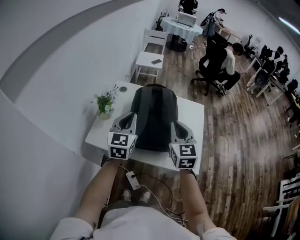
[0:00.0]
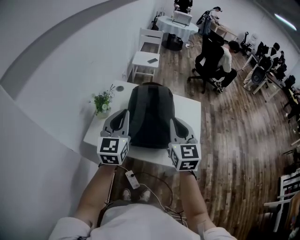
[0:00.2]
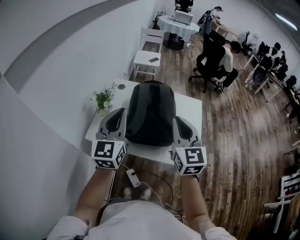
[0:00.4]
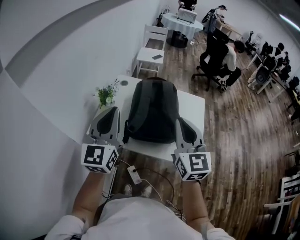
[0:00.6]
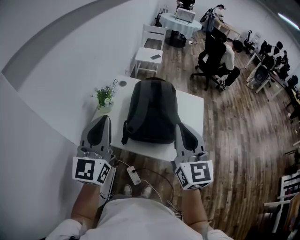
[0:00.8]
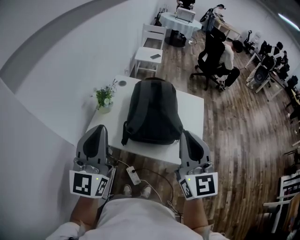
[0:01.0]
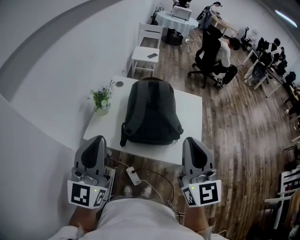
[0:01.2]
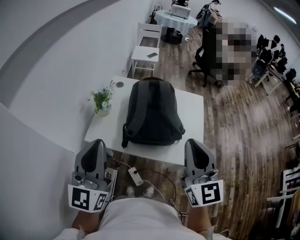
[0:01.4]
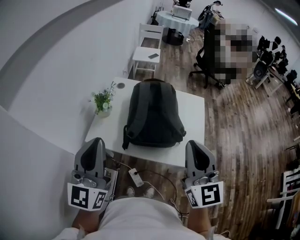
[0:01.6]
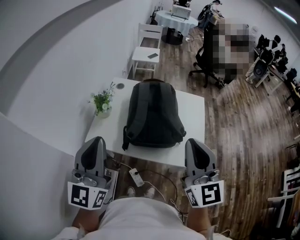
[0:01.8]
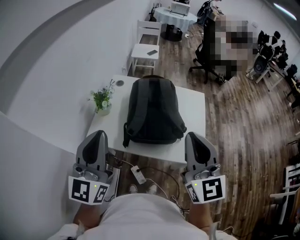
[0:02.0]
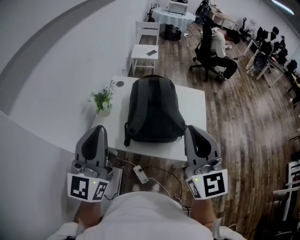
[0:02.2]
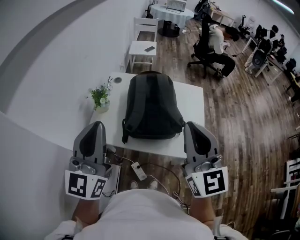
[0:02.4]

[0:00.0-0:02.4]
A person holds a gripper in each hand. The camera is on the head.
0:00.0 to 0:01.2: Both grippers move backward and upward, roughly 20 cm. The left gripper rotates about 20 degrees.
0:01.2 to 0:02.4: The grippers make only small movements.

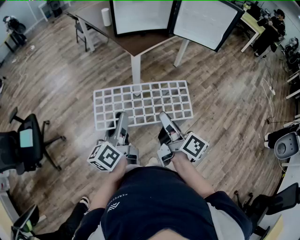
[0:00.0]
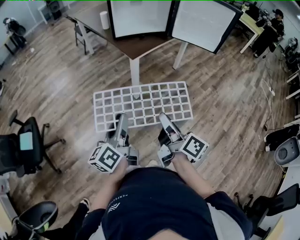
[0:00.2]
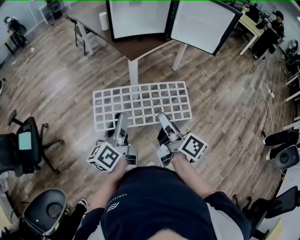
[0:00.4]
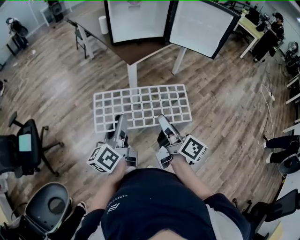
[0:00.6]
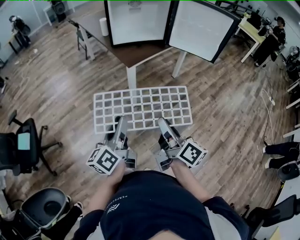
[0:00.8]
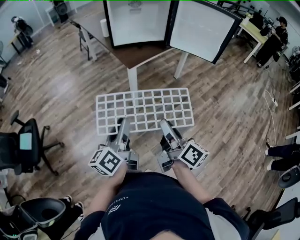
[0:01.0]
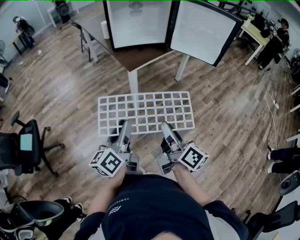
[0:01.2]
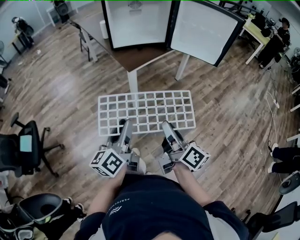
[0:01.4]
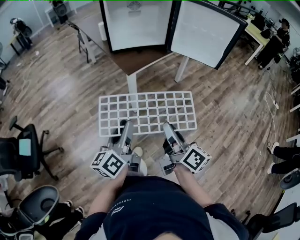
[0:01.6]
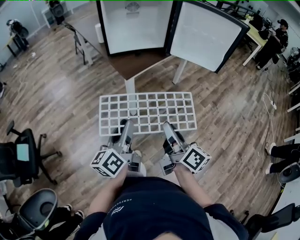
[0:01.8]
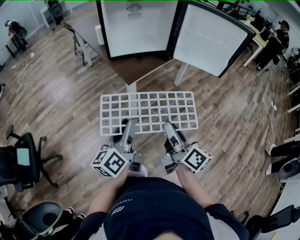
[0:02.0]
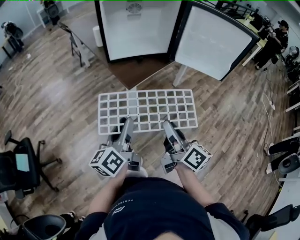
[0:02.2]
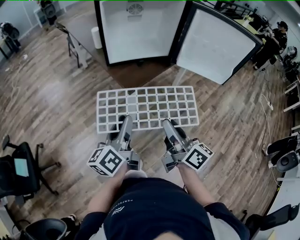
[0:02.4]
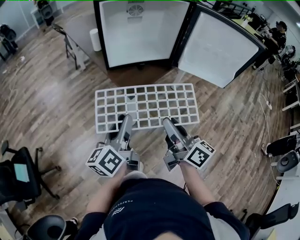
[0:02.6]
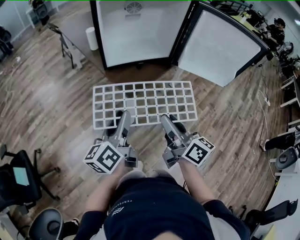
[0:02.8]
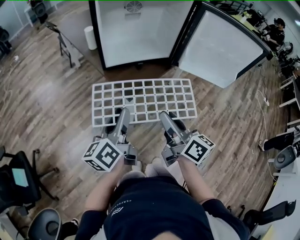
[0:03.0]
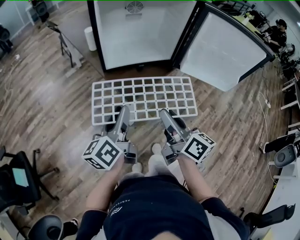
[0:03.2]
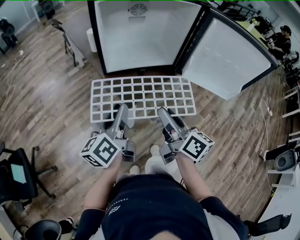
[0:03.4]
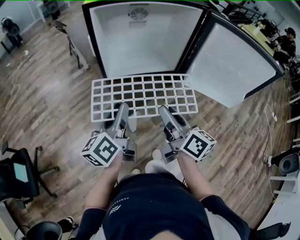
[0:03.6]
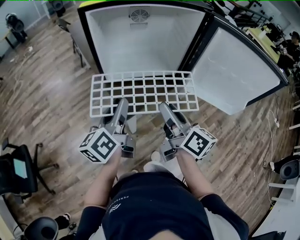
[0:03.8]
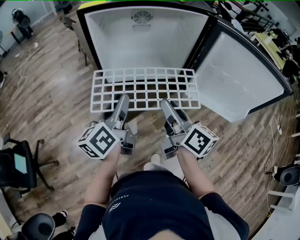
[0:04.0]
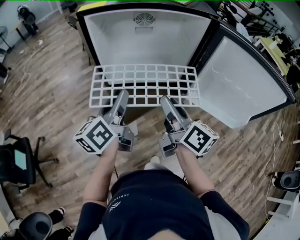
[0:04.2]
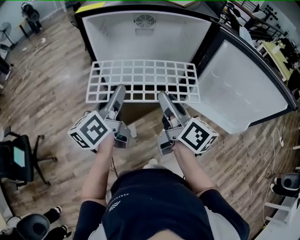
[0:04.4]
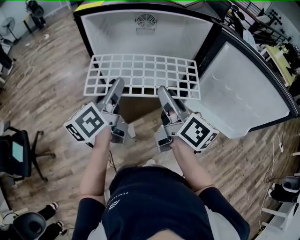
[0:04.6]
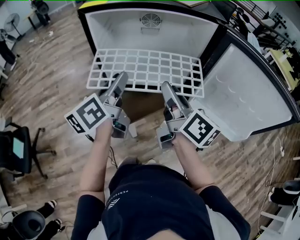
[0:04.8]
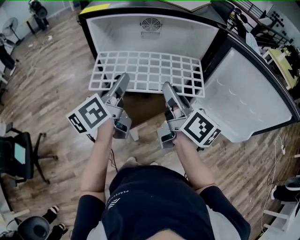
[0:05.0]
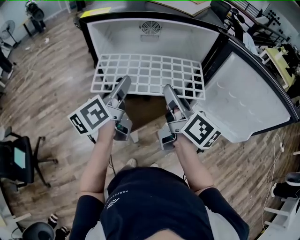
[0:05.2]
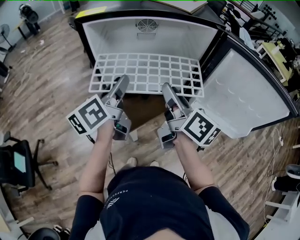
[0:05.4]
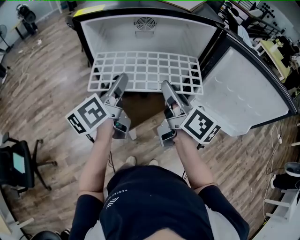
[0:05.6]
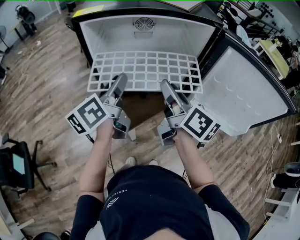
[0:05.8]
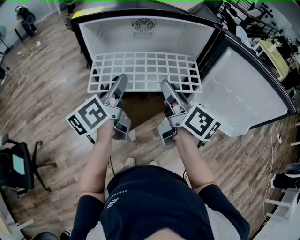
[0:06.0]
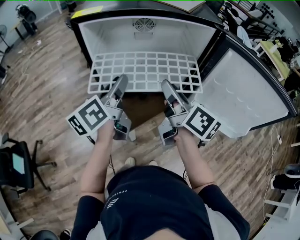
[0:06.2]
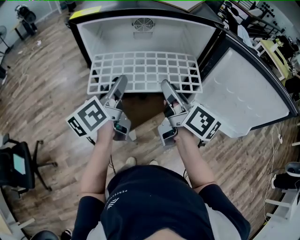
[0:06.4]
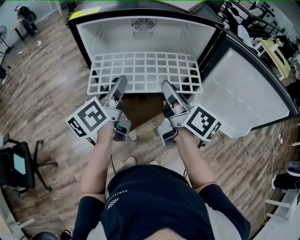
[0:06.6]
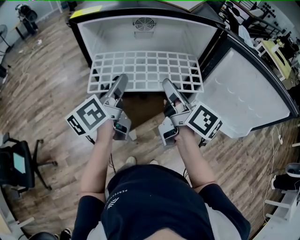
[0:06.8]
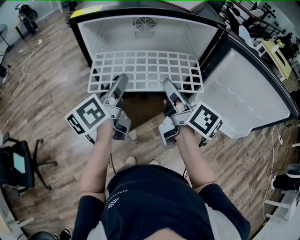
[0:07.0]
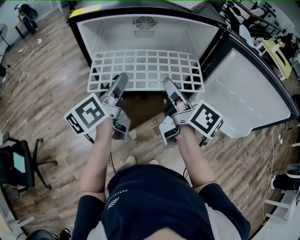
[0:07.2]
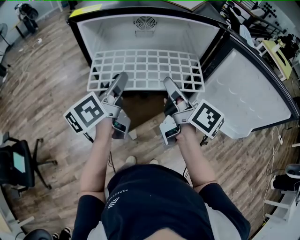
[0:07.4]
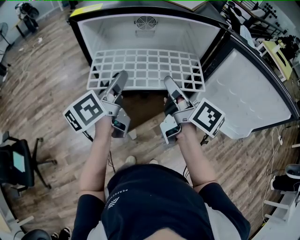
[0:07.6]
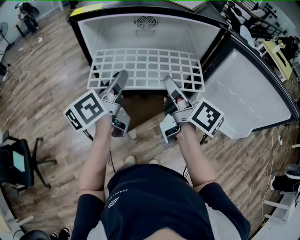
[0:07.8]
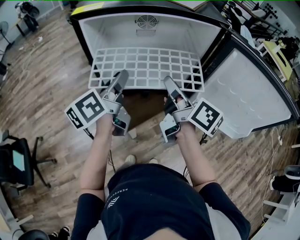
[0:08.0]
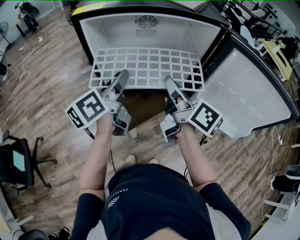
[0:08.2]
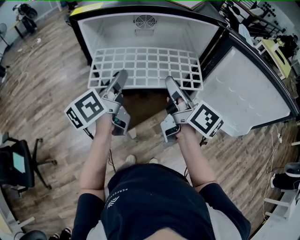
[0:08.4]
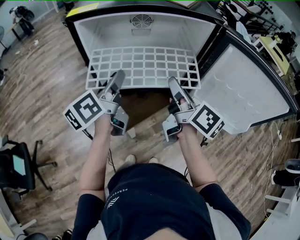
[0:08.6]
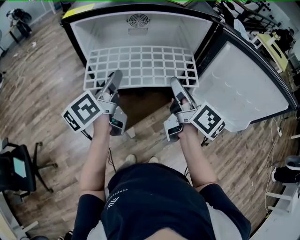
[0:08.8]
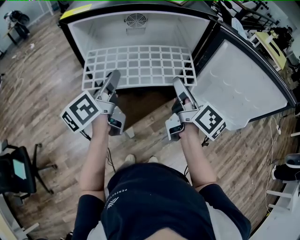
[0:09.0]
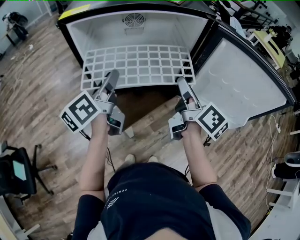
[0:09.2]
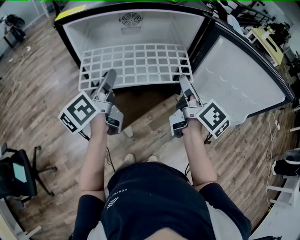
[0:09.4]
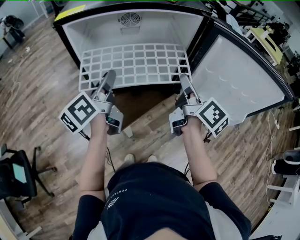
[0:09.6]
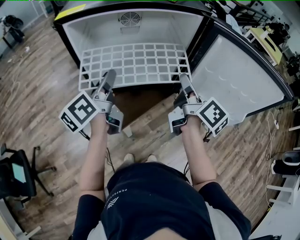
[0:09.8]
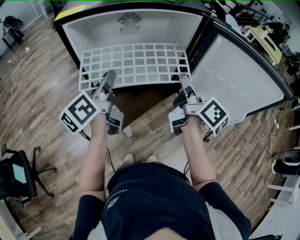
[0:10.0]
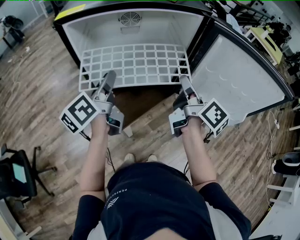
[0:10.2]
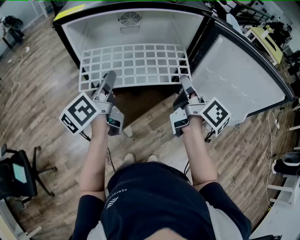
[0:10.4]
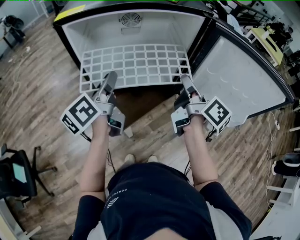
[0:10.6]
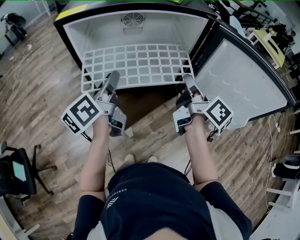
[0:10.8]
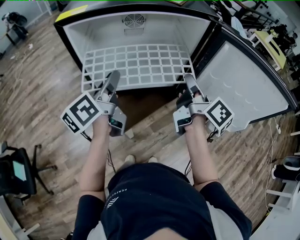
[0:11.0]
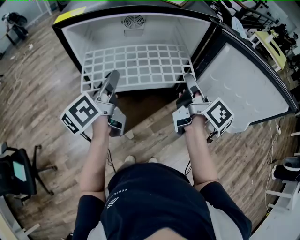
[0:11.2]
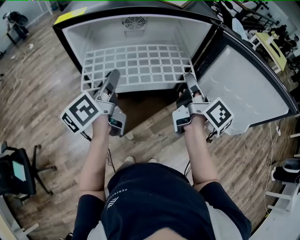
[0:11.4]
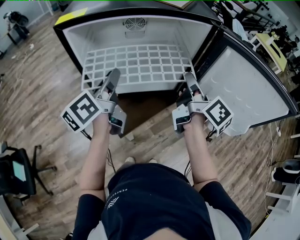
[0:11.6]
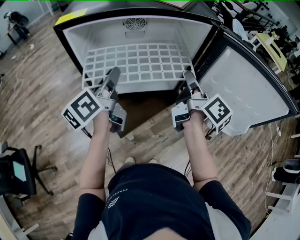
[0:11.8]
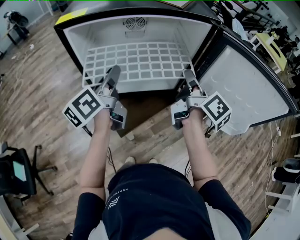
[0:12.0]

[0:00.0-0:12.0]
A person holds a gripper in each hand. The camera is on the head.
0:00.0 to 0:01.6: Both grippers travel together to the right and forward, about 10 cm.
0:01.6 to 0:03.0: Both grippers move forward, some 25 cm.
0:03.0 to 0:04.4: The grippers both shift forward by about 20 cm.
0:04.4 to 0:06.0: The grippers both shift forward by approximately 5 cm.
0:06.0 to 0:07.6: The grippers make only small movements.
0:07.6 to 0:09.0: The right gripper is displaced to the right by some 5 cm, and opens up.
0:09.0 to 0:10.4: The right gripper closes its fingers.
0:10.4 to 0:12.0: The right gripper ends up roughly 5 cm from where it was.

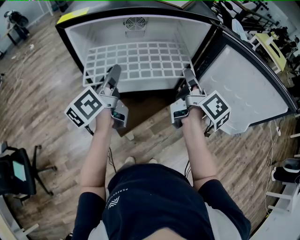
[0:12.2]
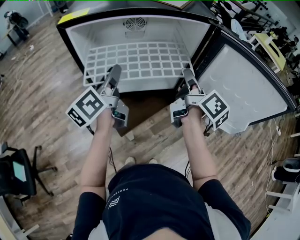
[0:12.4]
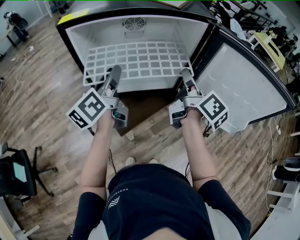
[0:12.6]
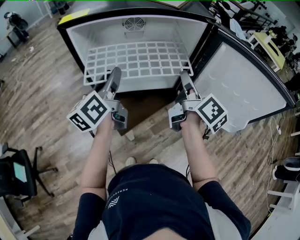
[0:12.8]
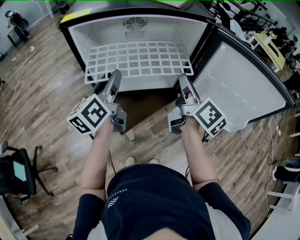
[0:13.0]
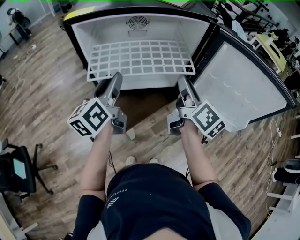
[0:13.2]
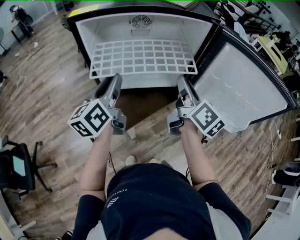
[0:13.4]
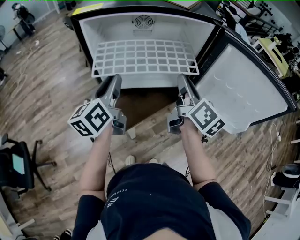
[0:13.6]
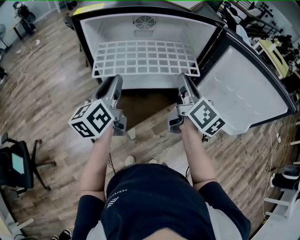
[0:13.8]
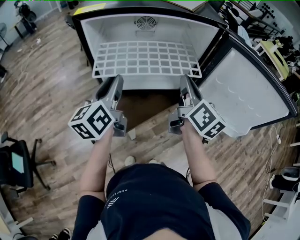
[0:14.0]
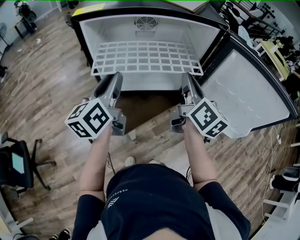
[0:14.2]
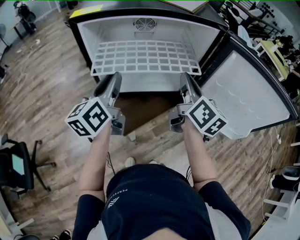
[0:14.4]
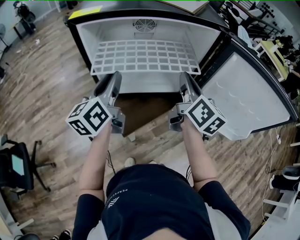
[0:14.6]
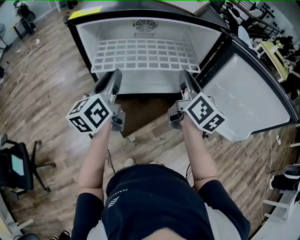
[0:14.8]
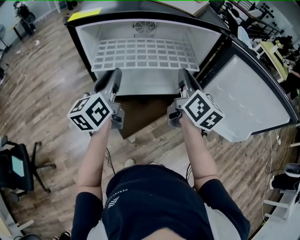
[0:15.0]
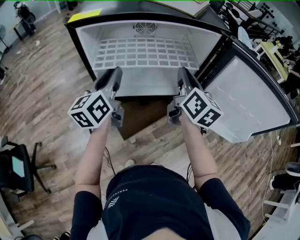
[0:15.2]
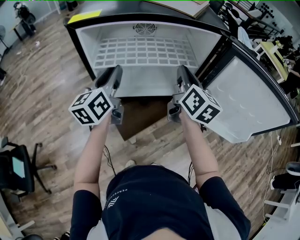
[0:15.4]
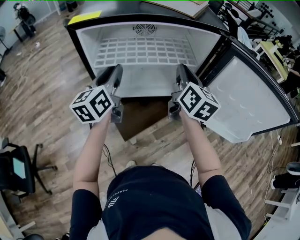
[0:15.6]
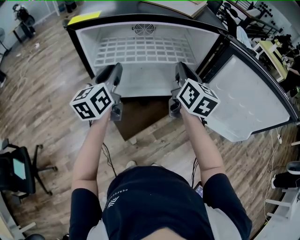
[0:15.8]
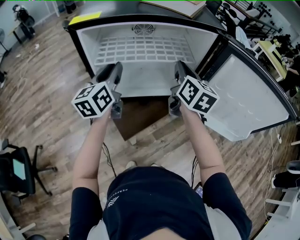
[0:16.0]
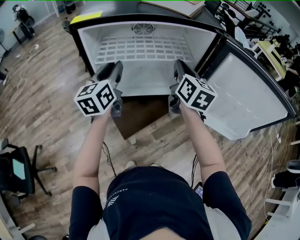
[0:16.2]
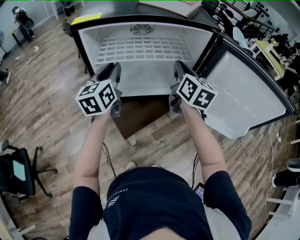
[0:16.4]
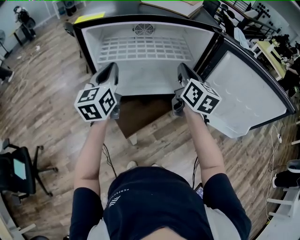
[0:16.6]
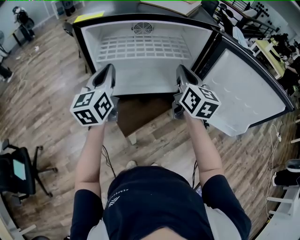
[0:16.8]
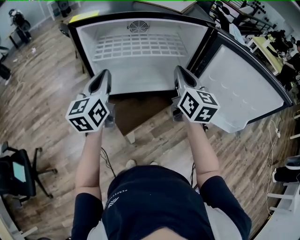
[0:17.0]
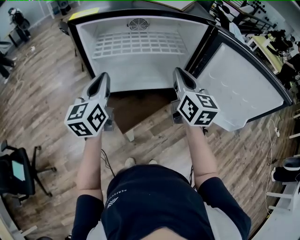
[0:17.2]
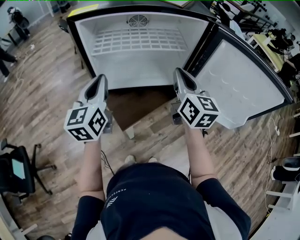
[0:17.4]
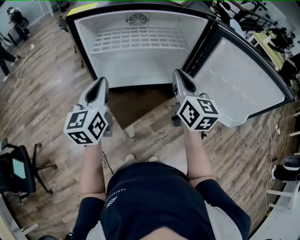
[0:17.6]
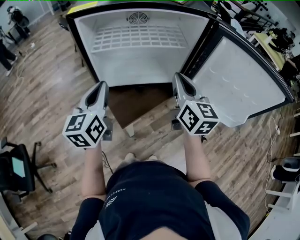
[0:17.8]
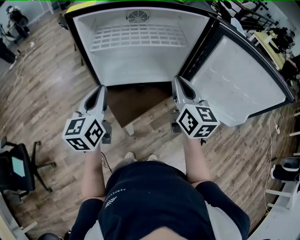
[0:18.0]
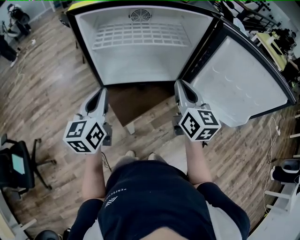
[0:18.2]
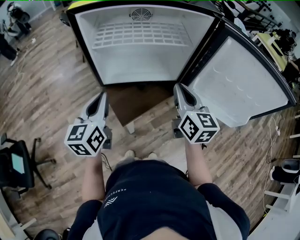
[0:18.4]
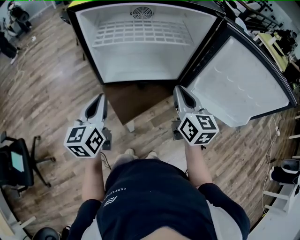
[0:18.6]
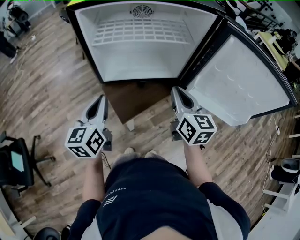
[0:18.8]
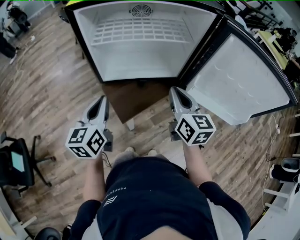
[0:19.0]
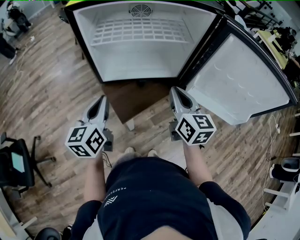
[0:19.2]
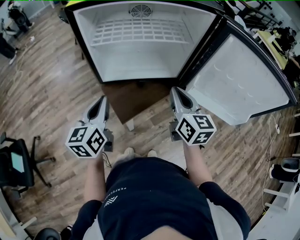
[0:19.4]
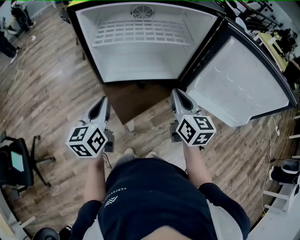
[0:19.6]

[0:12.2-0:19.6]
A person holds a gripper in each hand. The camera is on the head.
0:12.2 to 0:13.6: The right gripper moves approximately 5 cm, and swivels approximately 20 degrees; the left gripper shifts some 5 cm backward.
0:13.6 to 0:15.2: Both grippers travel together forward, some 5 cm.
0:15.2 to 0:16.6: The left gripper closes up.
0:16.6 to 0:18.2: The left gripper is displaced backward and downward by about 15 cm. The right gripper travels backward by approximately 10 cm.
0:18.2 to 0:19.6: The grippers stay close to where they were, moving slightly.

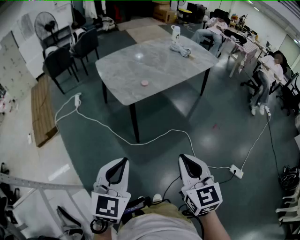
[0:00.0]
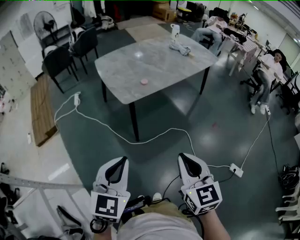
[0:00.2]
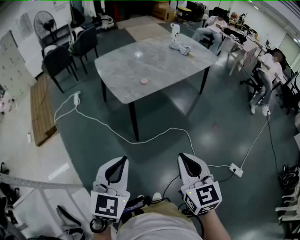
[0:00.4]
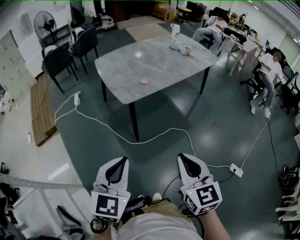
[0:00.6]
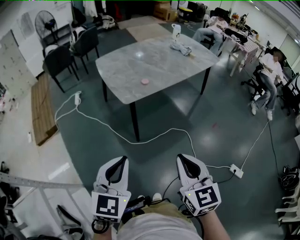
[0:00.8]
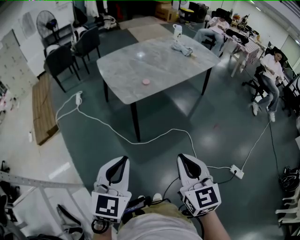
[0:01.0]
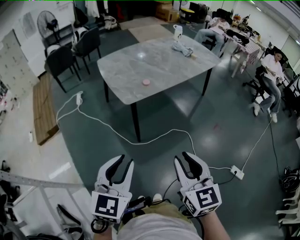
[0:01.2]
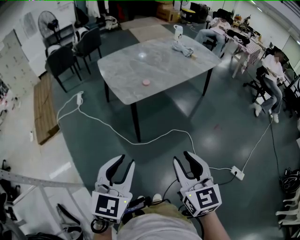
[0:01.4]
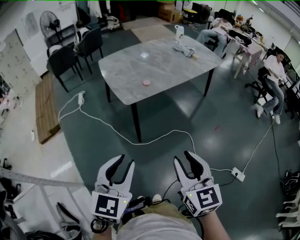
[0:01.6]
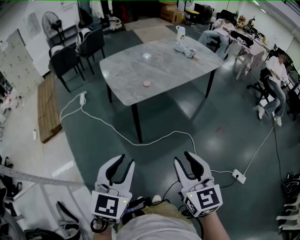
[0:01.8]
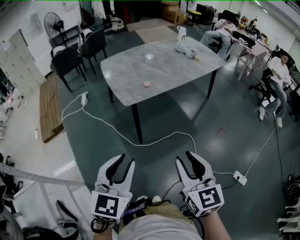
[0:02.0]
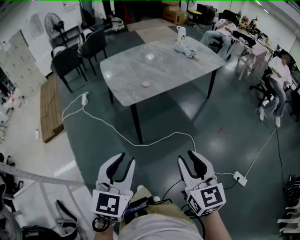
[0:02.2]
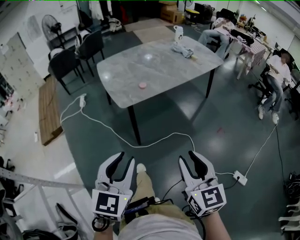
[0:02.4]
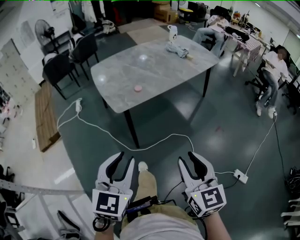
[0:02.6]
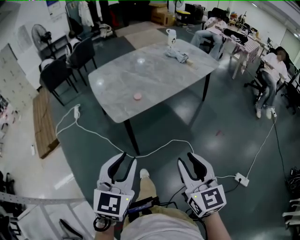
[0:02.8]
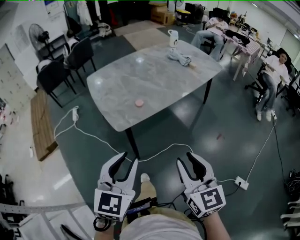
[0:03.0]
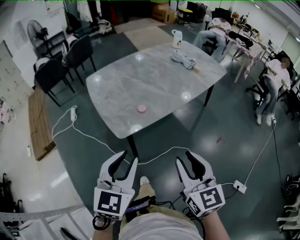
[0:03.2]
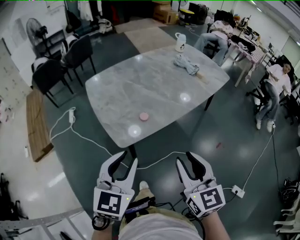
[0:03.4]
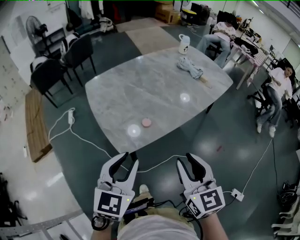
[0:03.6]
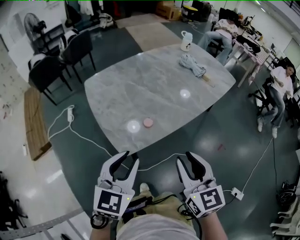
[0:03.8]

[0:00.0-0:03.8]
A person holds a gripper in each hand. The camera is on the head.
0:00.0 to 0:01.2: The right gripper opens up.
0:01.2 to 0:02.6: The left gripper moves to the right and forward, about 10 cm. Meanwhile the right gripper shifts some 5 cm to the right.
0:02.6 to 0:03.8: Both grippers move forward, about 25 cm.
